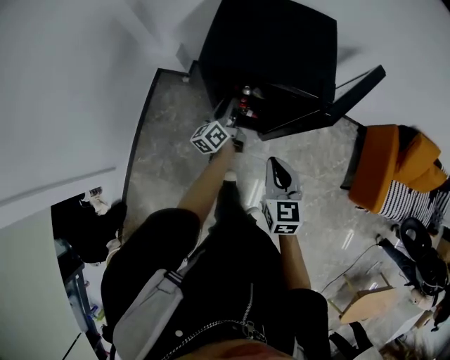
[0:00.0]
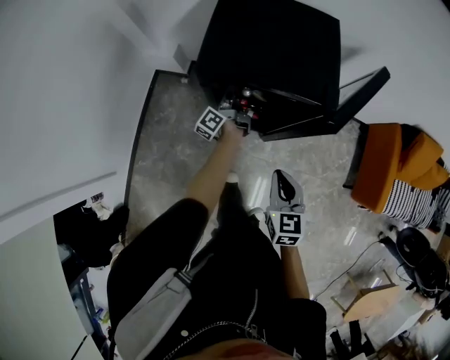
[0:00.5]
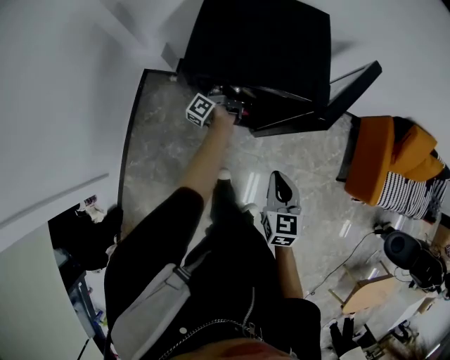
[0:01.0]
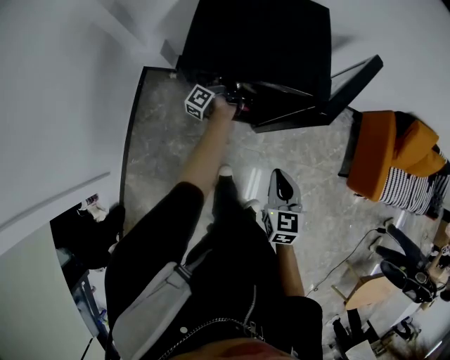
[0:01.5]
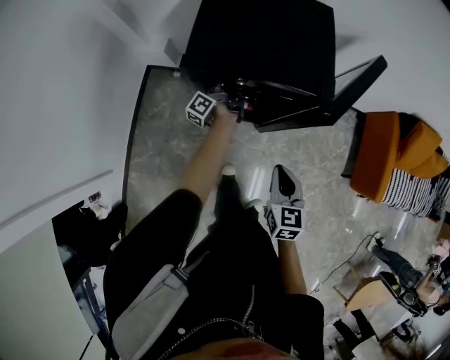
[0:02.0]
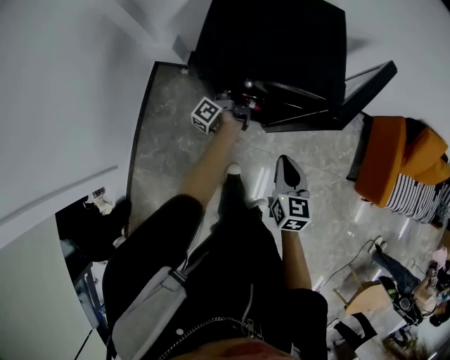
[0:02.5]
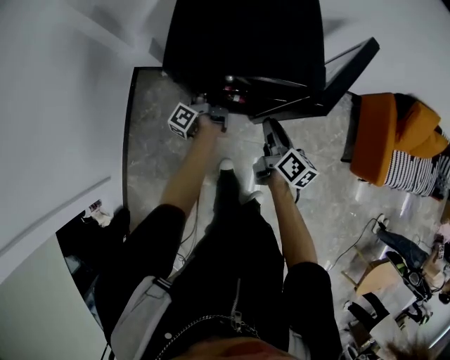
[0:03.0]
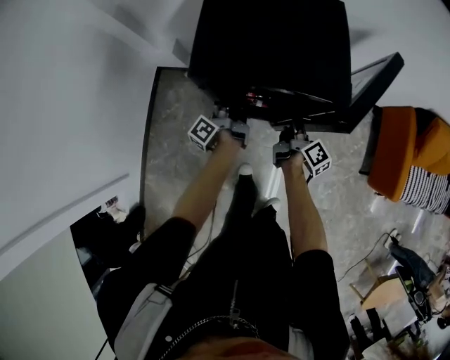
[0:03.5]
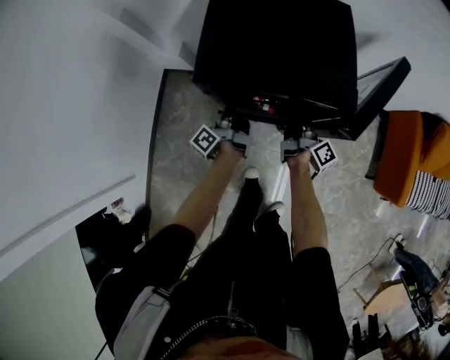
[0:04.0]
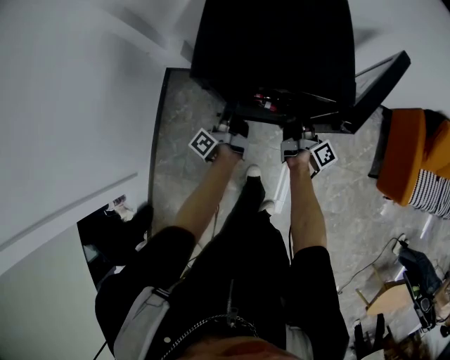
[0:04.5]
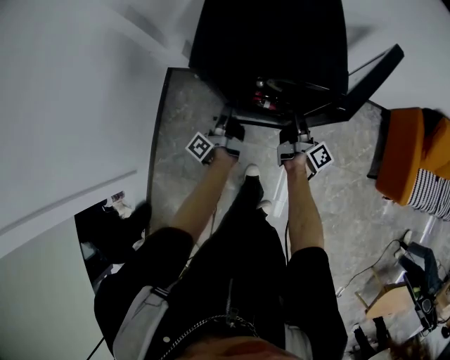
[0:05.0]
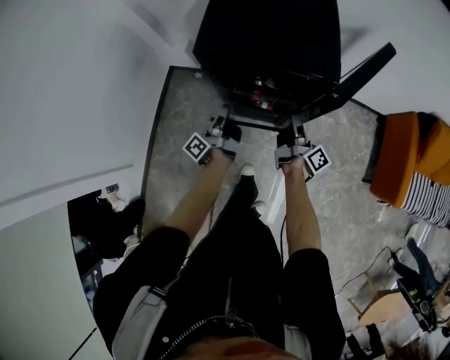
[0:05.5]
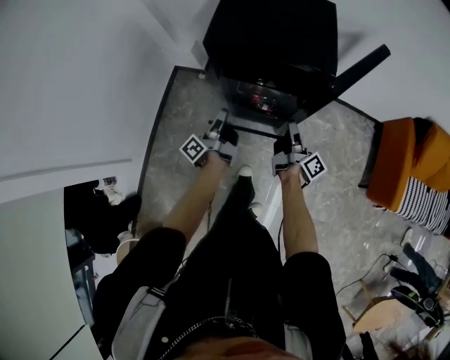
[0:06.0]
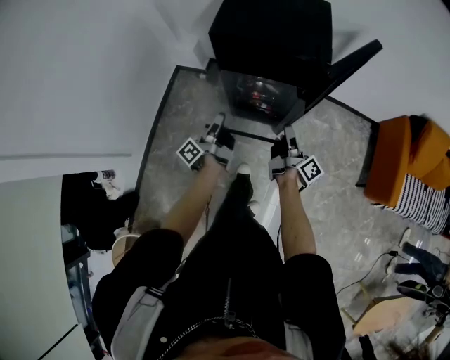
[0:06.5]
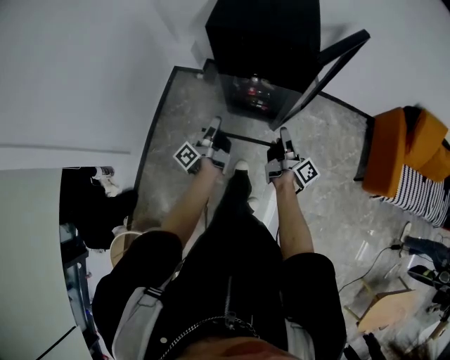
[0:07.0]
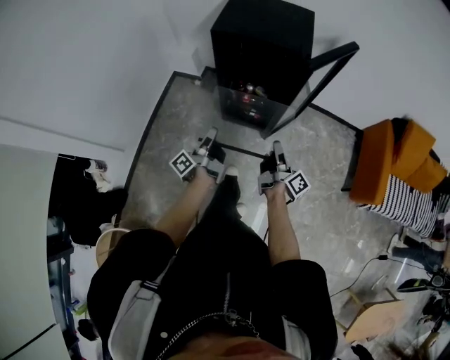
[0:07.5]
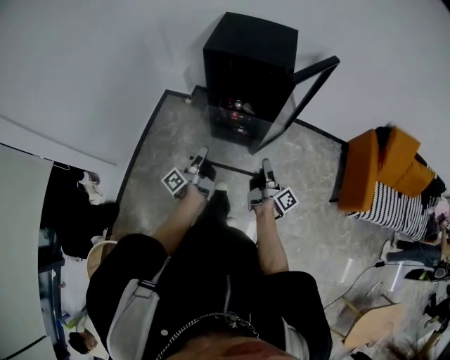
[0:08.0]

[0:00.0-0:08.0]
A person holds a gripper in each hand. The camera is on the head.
0:00.0 to 0:02.0: The right gripper changes place by approximately 5 cm. Meanwhile the left gripper goes approximately 10 cm forward, changes its angle by approximately 30 degrees, and closes its fingers.
0:02.0 to 0:04.0: The left gripper heads backward, covering some 5 cm. Meanwhile the right gripper moves forward and downward, approximately 25 cm, and rolls clockwise, seen from behind, by about 70 degrees.
0:04.0 to 0:06.0: Both grippers travel together backward, roughly 15 cm.
0:06.0 to 0:08.0: Both grippers travel together backward, approximately 25 cm.

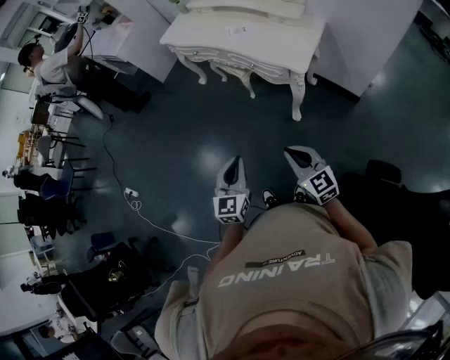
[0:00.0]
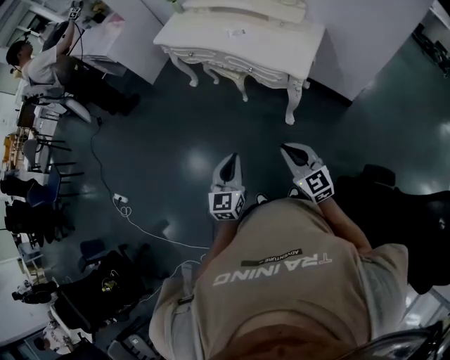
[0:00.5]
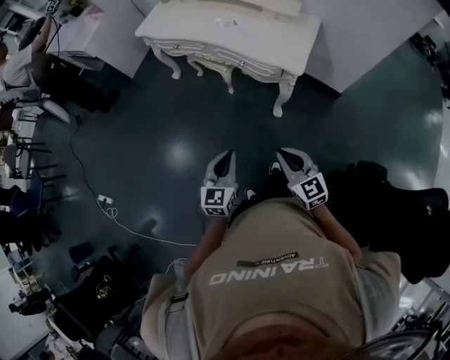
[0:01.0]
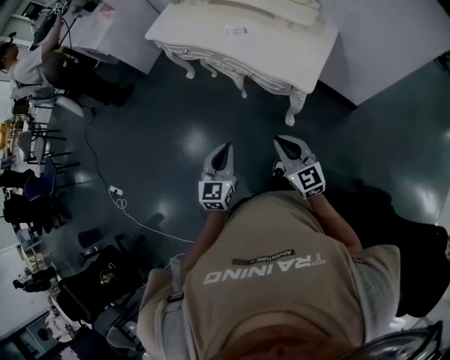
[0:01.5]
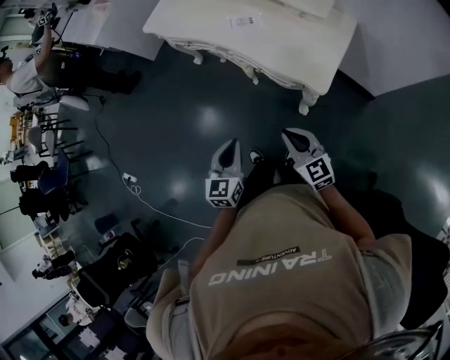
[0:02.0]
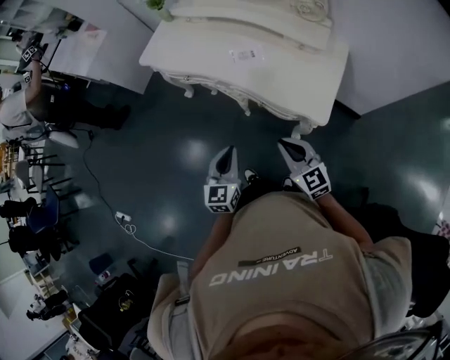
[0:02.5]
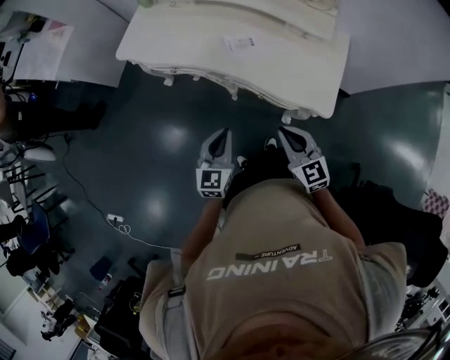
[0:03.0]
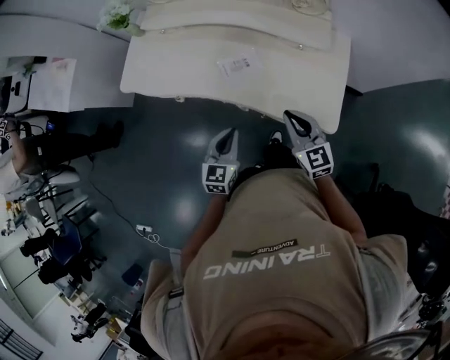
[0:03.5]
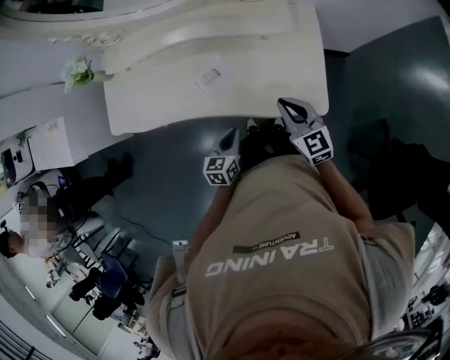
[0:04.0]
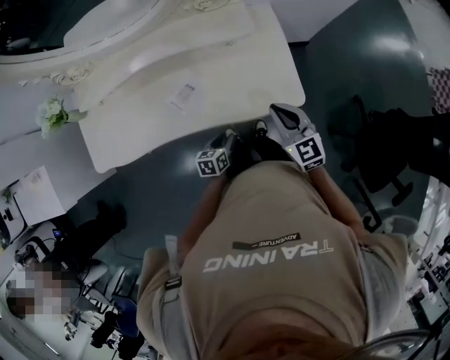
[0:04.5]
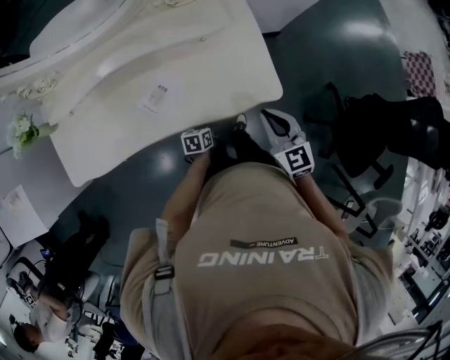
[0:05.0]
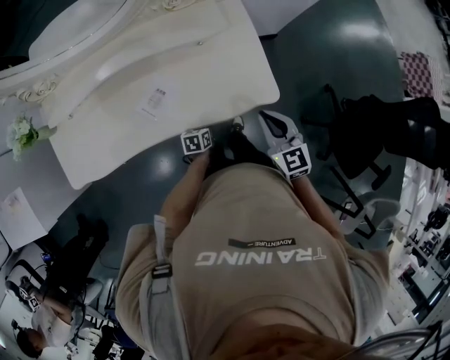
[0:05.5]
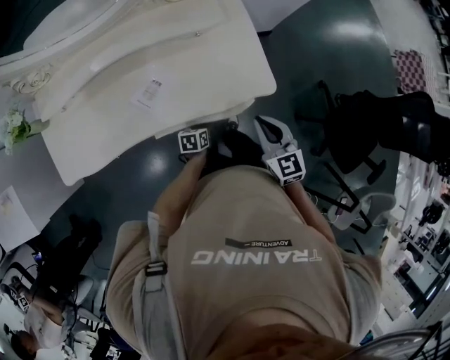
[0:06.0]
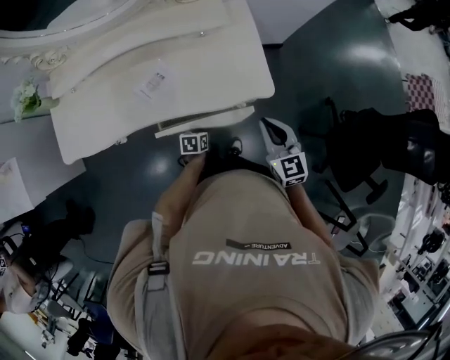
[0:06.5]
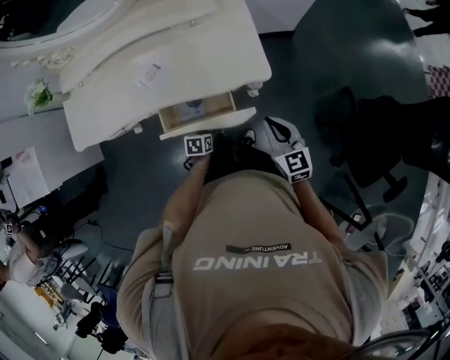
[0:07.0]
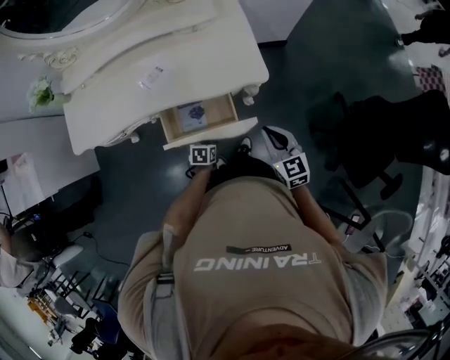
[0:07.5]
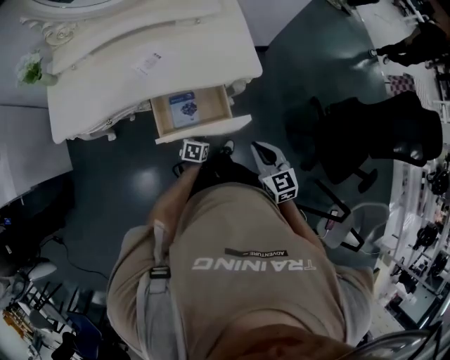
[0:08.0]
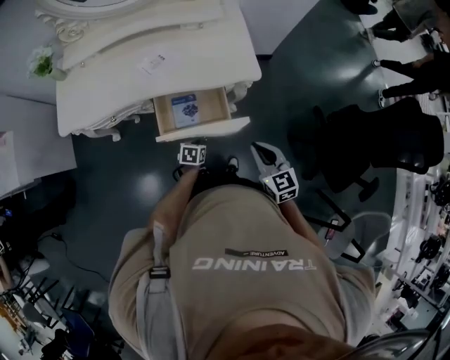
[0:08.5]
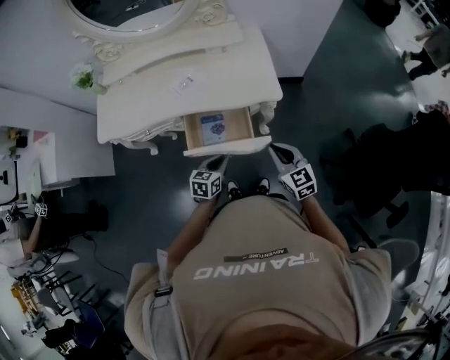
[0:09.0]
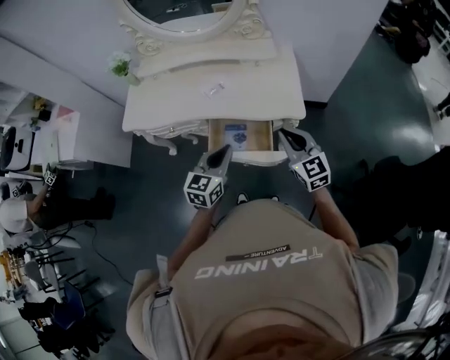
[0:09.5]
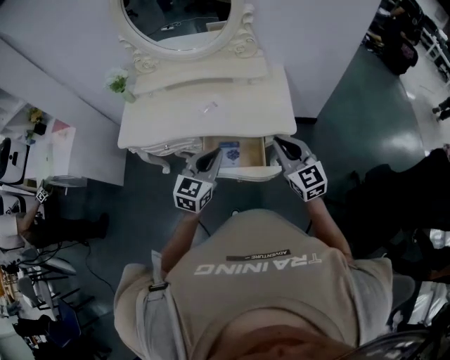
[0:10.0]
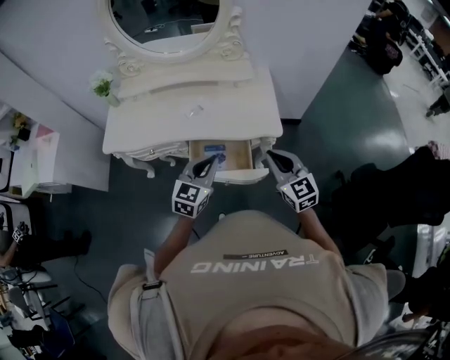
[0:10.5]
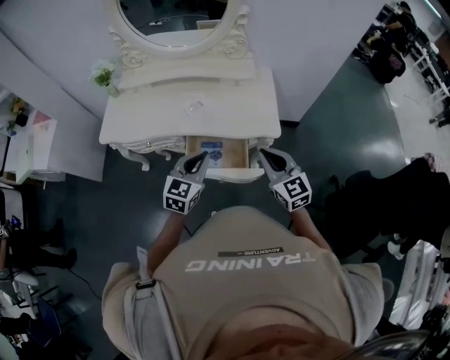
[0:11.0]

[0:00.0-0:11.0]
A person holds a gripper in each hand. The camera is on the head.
0:00.0 to 0:02.0: Both grippers travel together forward, about 30 cm.
0:02.0 to 0:03.5: Both grippers move forward, some 30 cm. The right gripper rotates some 20 degrees; the left gripper changes its angle by approximately 30 degrees.
0:03.5 to 0:05.5: The left gripper moves downward, about 25 cm, swivels some 50 degrees, and opens its fingers. The right gripper ends up approximately 10 cm from where it was, and turns by approximately 30 degrees.
0:05.5 to 0:07.5: Both grippers move backward and to the right, some 20 cm.
0:07.5 to 0:09.0: The right gripper goes approximately 10 cm backward; the left gripper travels upward by about 20 cm, and turns by approximately 30 degrees.
0:09.0 to 0:11.0: The right gripper is displaced upward and to the left by approximately 15 cm. The left gripper is displaced upward by roughly 20 cm, and changes its angle by roughly 30 degrees.

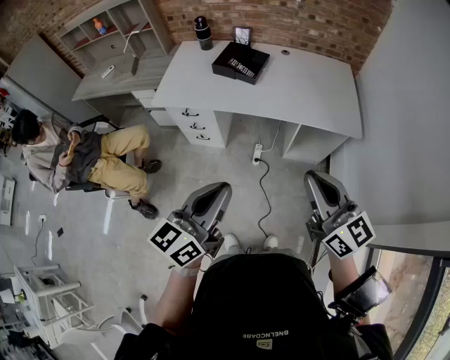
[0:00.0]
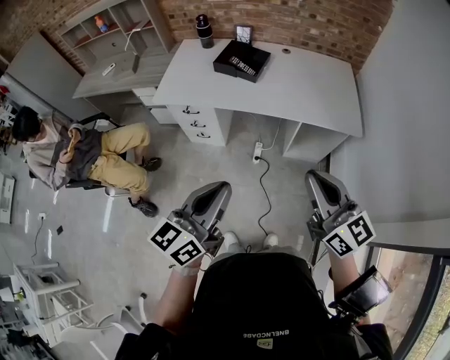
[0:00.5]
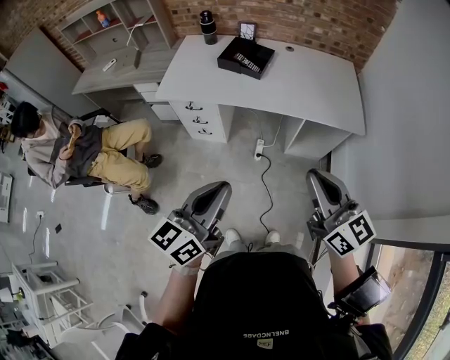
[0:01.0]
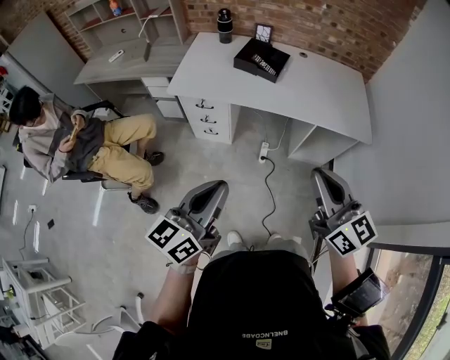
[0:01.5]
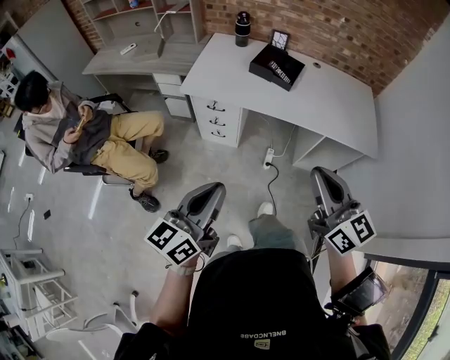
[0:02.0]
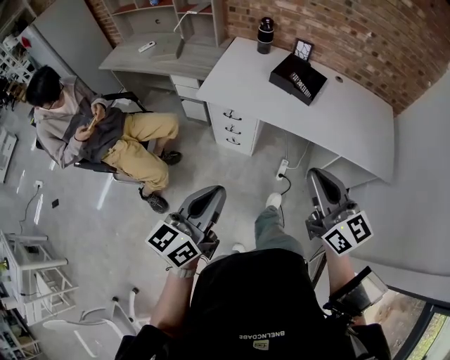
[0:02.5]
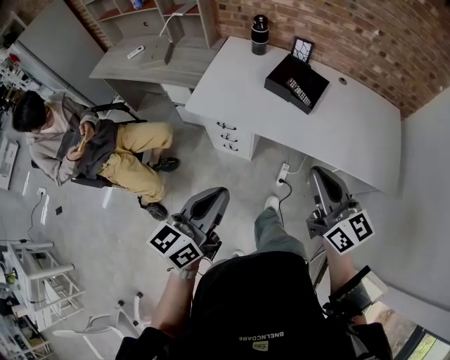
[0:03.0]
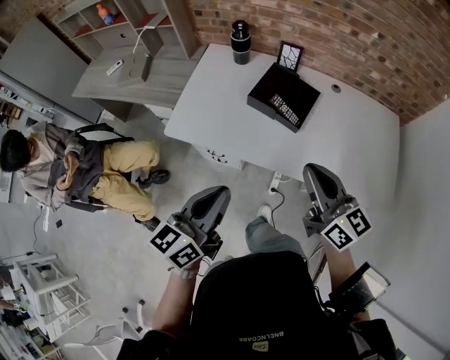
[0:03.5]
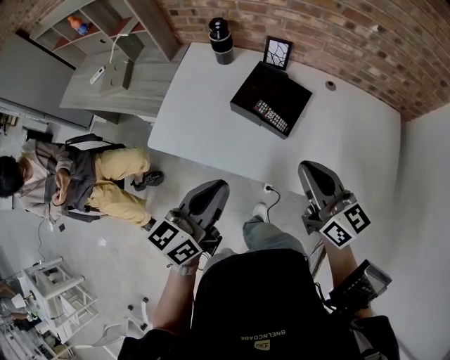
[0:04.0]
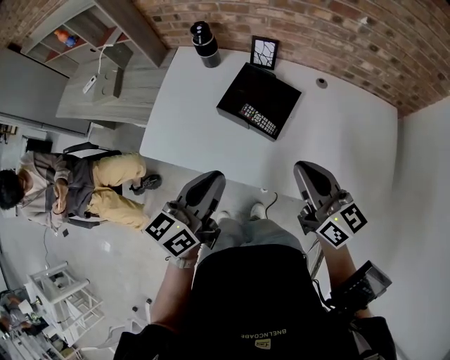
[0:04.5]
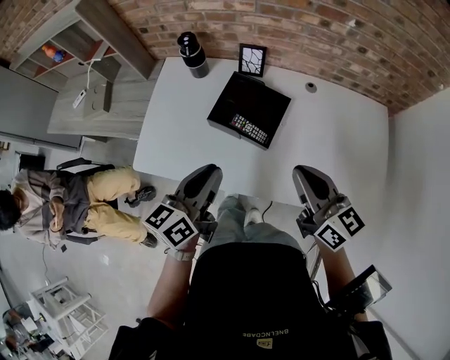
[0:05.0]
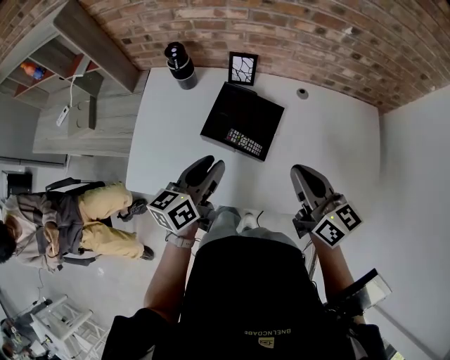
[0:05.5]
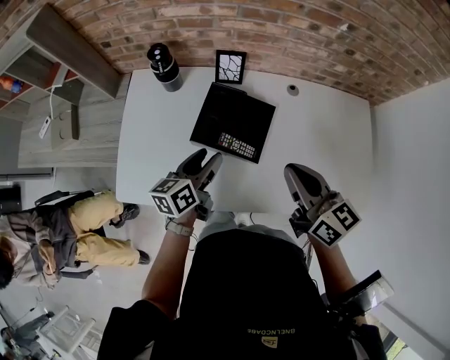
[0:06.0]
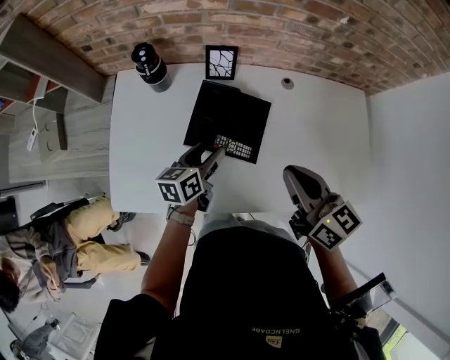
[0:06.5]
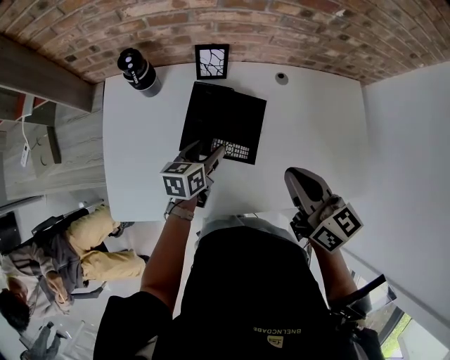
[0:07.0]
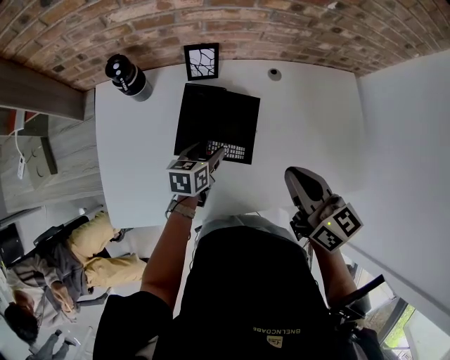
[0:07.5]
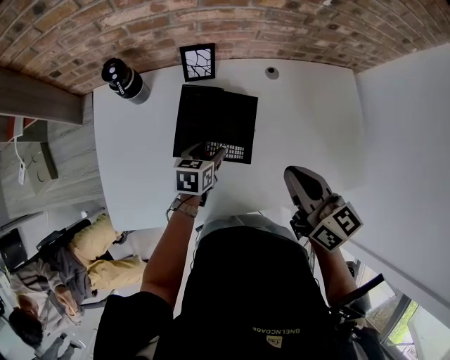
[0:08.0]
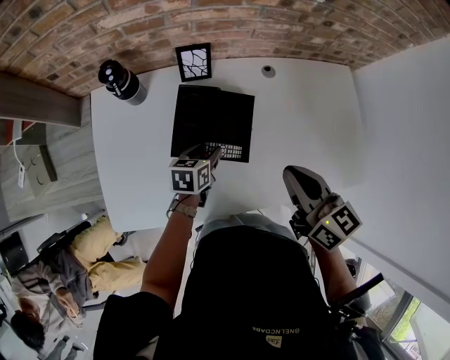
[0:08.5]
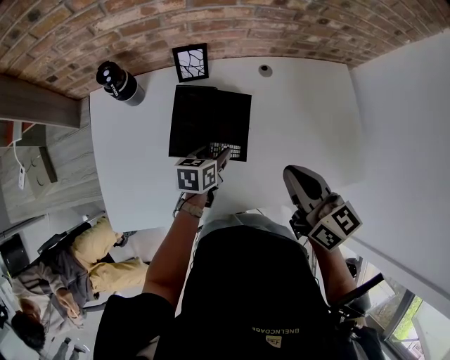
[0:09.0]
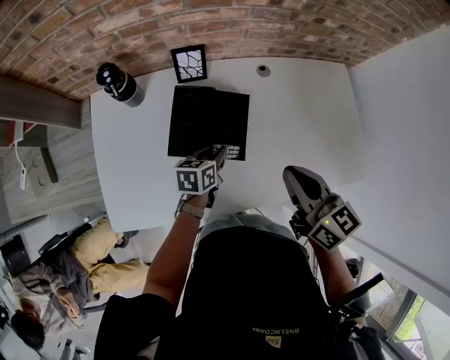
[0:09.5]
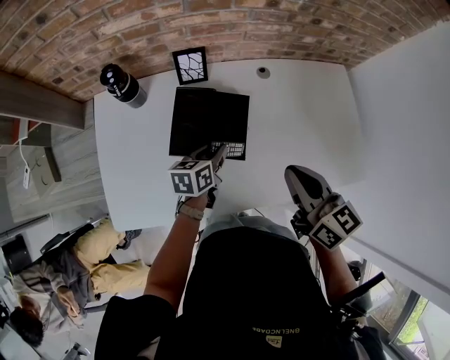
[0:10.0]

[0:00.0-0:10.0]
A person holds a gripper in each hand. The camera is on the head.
0:00.0 to 0:02.0: The two grippers go about 15 cm to the left.
0:02.0 to 0:04.0: The pair of grippers is taken forward, some 40 cm.
0:04.0 to 0:06.0: The right gripper goes approximately 10 cm forward. Meanwhile the left gripper travels forward and downward by roughly 25 cm, and opens its fingers.
0:06.0 to 0:08.0: The left gripper goes roughly 15 cm downward and forward, and swivels about 30 degrees.
0:08.0 to 0:10.0: The left gripper shifts by approximately 5 cm, and closes.
